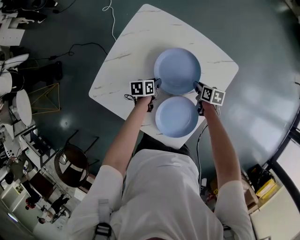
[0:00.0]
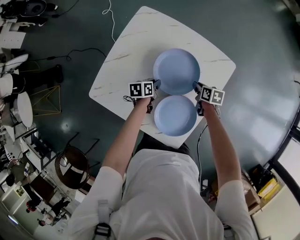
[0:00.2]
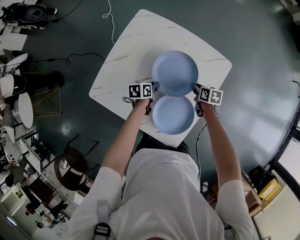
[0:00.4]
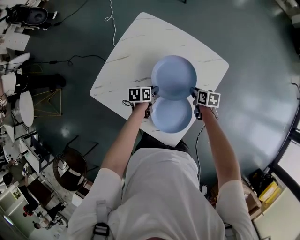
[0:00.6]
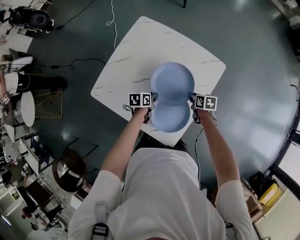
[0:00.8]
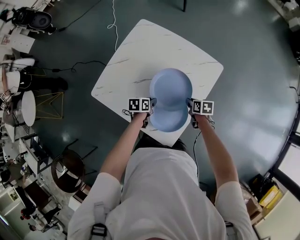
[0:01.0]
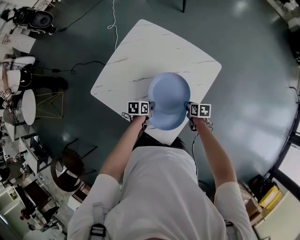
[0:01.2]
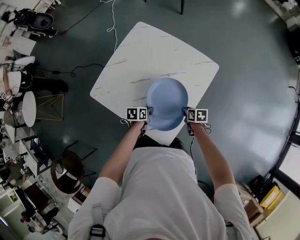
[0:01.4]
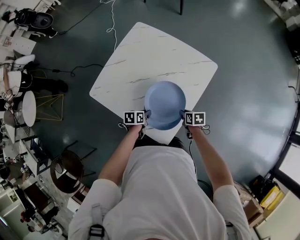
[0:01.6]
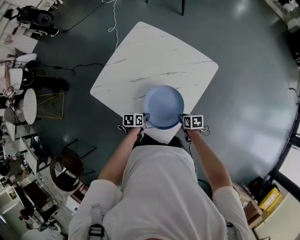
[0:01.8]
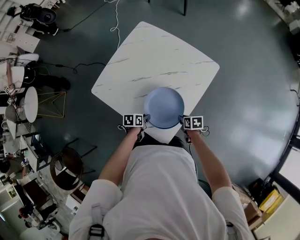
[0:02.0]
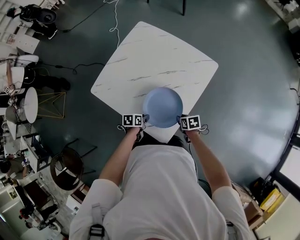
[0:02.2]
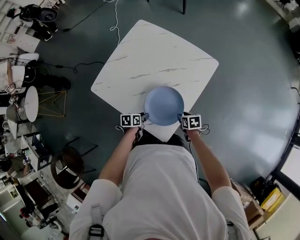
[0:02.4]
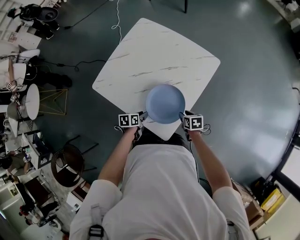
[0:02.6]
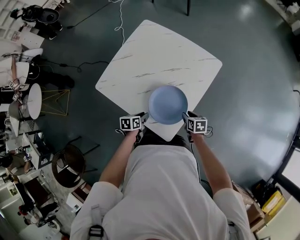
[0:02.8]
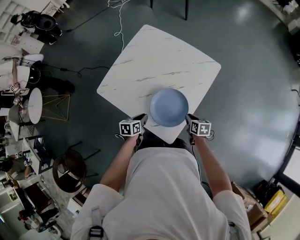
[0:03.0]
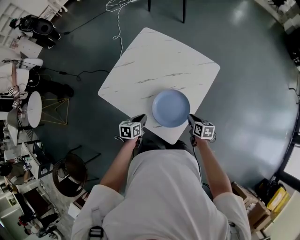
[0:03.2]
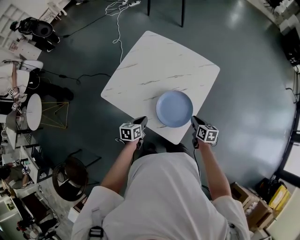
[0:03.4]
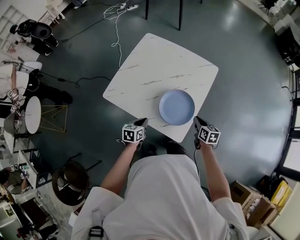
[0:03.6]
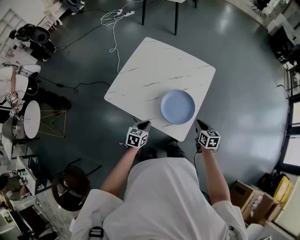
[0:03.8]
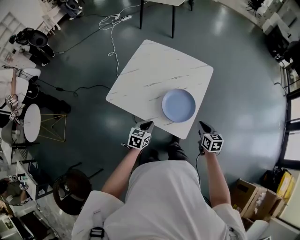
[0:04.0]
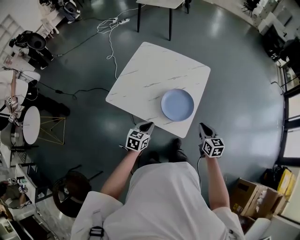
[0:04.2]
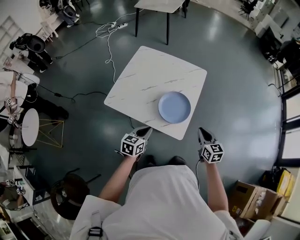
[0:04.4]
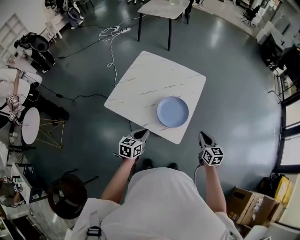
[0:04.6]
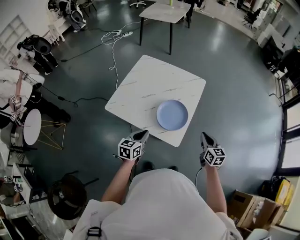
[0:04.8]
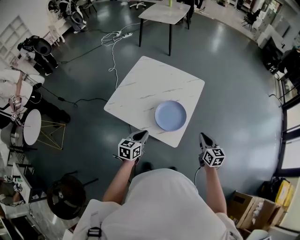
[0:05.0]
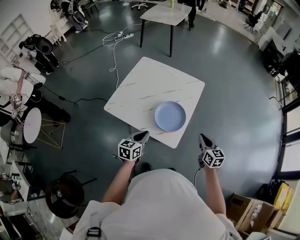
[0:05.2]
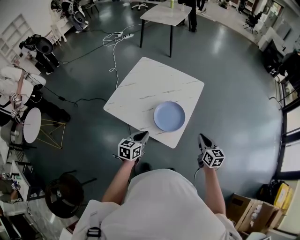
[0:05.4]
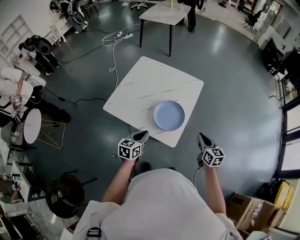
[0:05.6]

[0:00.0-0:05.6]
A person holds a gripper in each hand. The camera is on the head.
0:00.0 to 0:01.4: Both grippers travel together backward, roughly 20 cm.
0:01.4 to 0:02.8: Both grippers move backward, approximately 5 cm.
0:02.8 to 0:04.2: The two grippers go approximately 25 cm upward and backward. The left gripper rotates some 40 degrees, and closes up. The right gripper turns by some 30 degrees, and closes.
0:04.2 to 0:05.6: The left gripper goes roughly 5 cm upward; the right gripper goes approximately 5 cm to the right.

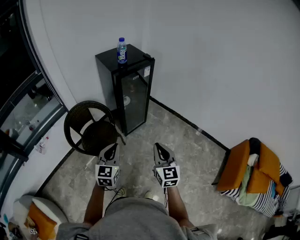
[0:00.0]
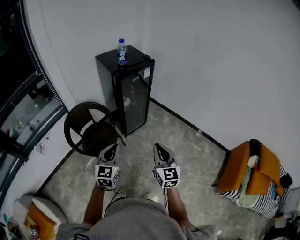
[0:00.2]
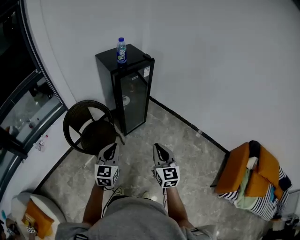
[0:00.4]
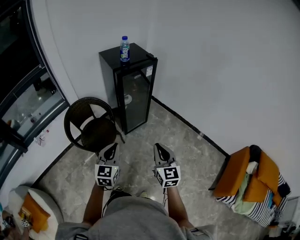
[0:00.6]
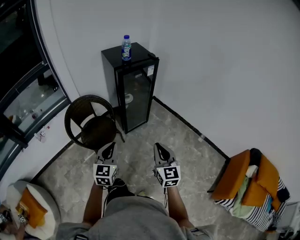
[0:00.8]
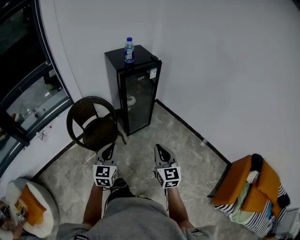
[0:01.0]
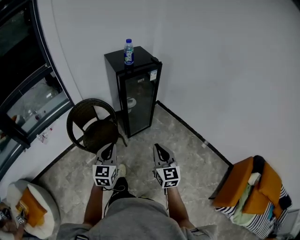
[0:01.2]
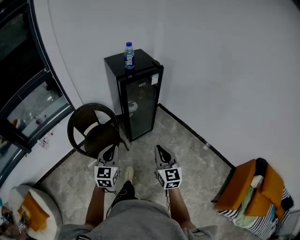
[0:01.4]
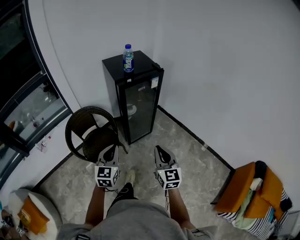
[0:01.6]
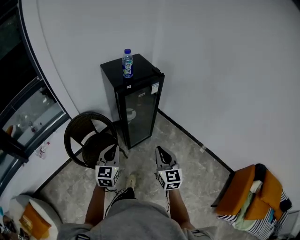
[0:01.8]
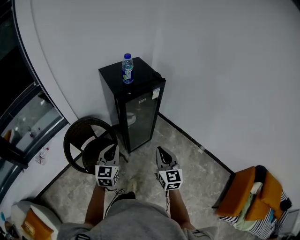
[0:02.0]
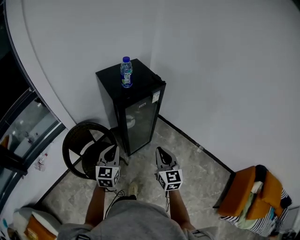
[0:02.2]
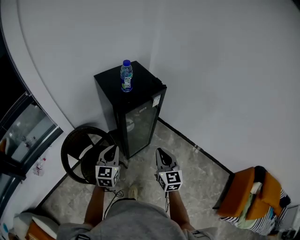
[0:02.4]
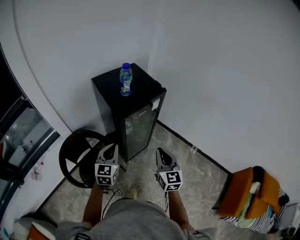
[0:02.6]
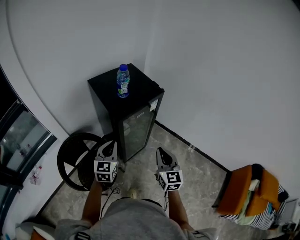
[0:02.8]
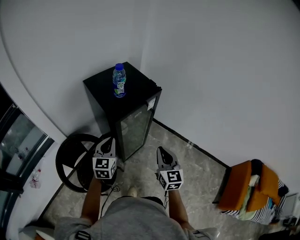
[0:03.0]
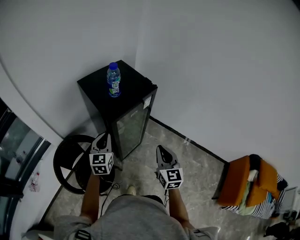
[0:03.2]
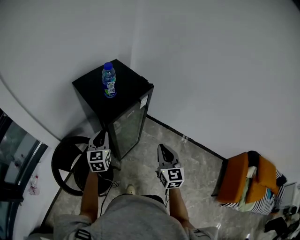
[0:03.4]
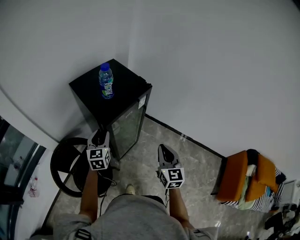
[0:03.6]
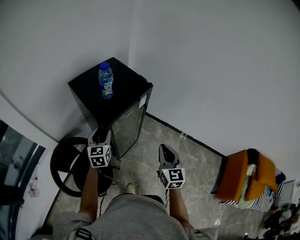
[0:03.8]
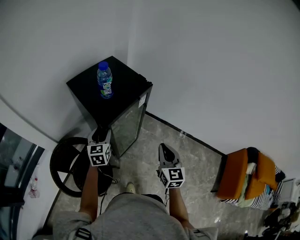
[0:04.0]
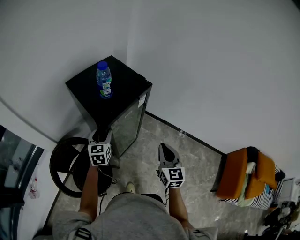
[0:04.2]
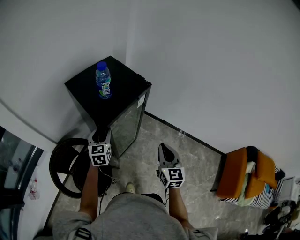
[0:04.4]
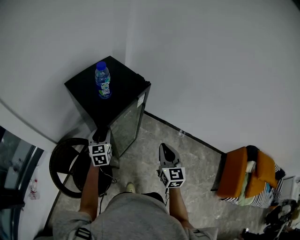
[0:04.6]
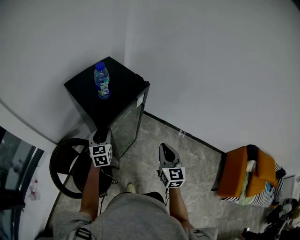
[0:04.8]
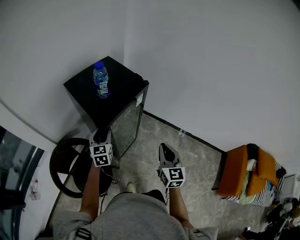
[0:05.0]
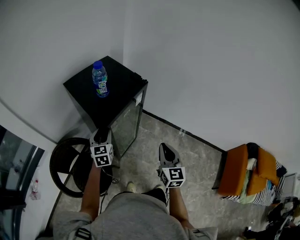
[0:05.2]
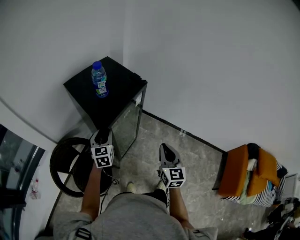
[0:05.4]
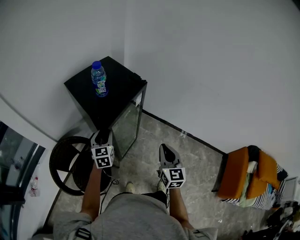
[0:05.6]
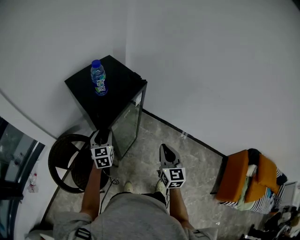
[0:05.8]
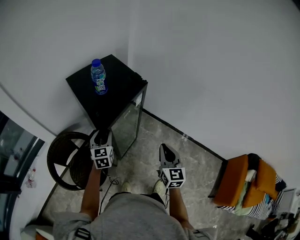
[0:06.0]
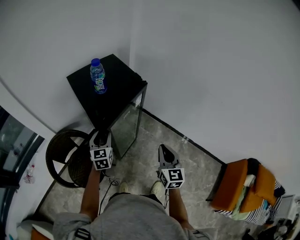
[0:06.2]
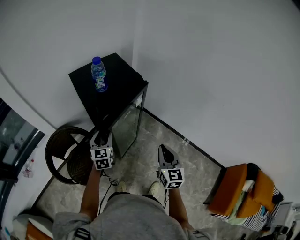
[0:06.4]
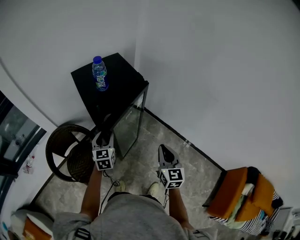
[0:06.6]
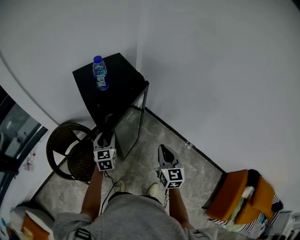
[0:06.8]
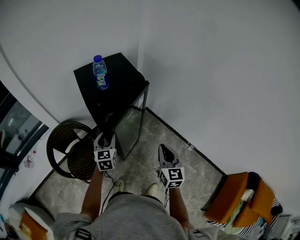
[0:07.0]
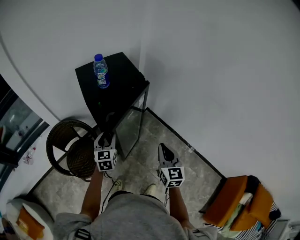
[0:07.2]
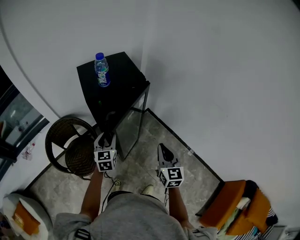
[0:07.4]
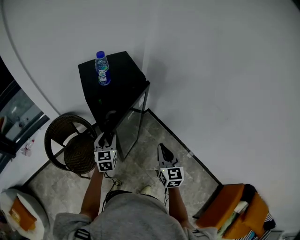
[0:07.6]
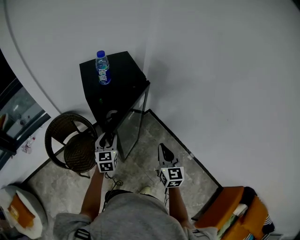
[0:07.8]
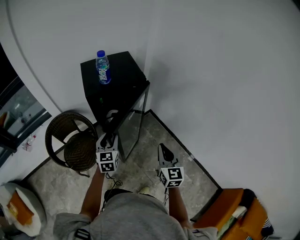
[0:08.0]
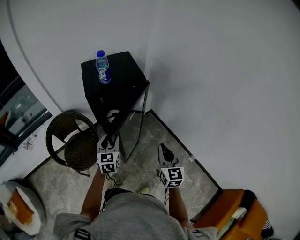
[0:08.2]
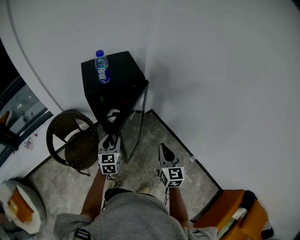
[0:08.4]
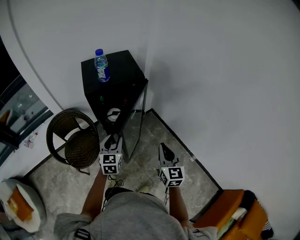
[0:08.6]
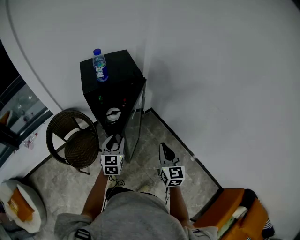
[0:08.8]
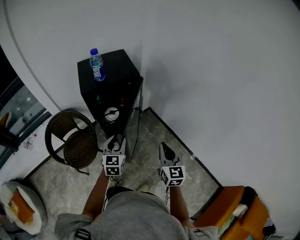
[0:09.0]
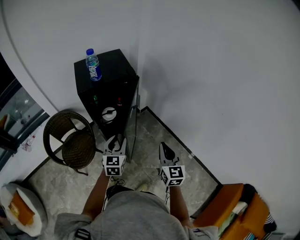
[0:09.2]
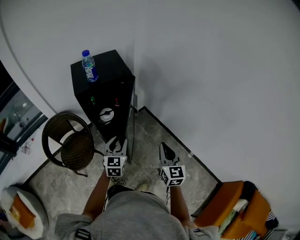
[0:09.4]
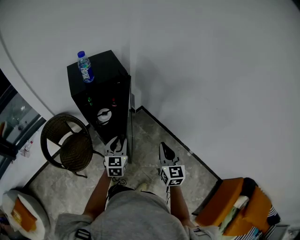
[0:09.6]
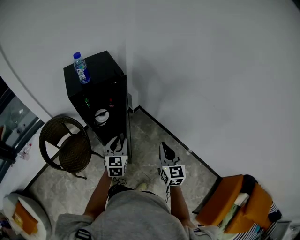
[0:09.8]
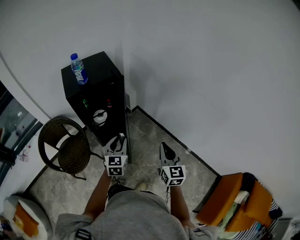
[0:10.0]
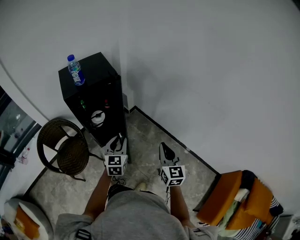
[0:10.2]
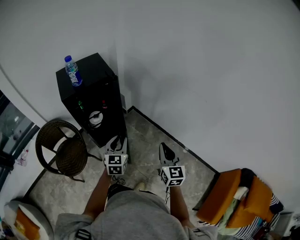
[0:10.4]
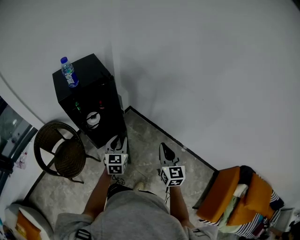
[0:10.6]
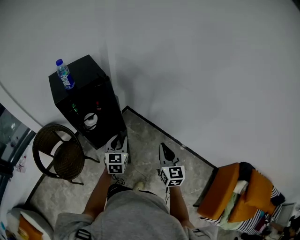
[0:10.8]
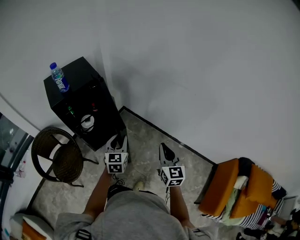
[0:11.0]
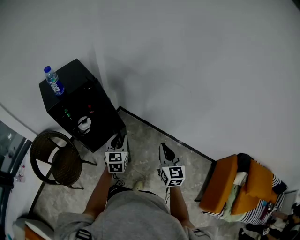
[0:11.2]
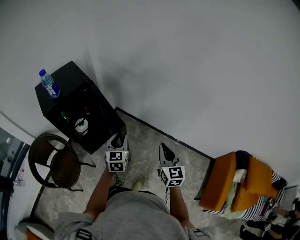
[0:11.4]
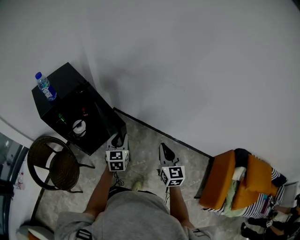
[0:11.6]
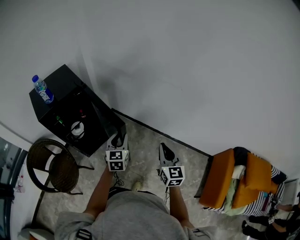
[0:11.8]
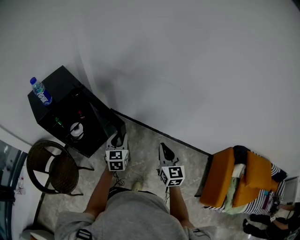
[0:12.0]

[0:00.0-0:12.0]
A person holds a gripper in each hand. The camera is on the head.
0:00.0 to 0:01.6: Both grippers travel together forward, approximately 10 cm.
0:01.6 to 0:03.0: The grippers both shift forward by roughly 25 cm.
0:03.0 to 0:04.4: The left gripper is displaced forward and downward by about 10 cm, and opens its fingers; the right gripper ends up some 5 cm from where it was.
0:04.4 to 0:06.0: The right gripper heads to the right, covering about 5 cm, while the left gripper changes place by about 5 cm.
0:06.0 to 0:07.6: The left gripper travels to the right and backward by roughly 10 cm. Meanwhile the right gripper is displaced to the right by roughly 10 cm.
0:07.6 to 0:09.0: The right gripper shifts some 5 cm to the right. The left gripper is displaced to the right and backward by about 10 cm.
0:09.0 to 0:10.4: The right gripper shifts roughly 10 cm to the right and backward; the left gripper travels to the right by approximately 10 cm.
0:10.4 to 0:12.0: Both grippers move to the right, some 10 cm.

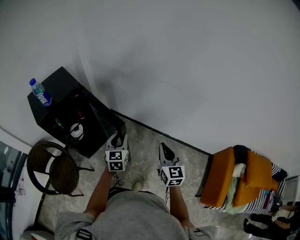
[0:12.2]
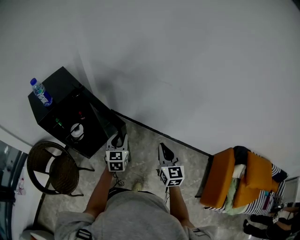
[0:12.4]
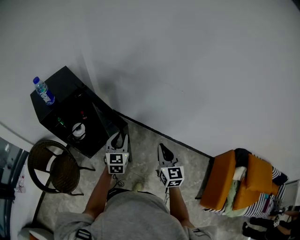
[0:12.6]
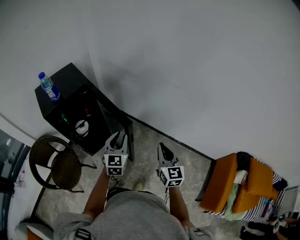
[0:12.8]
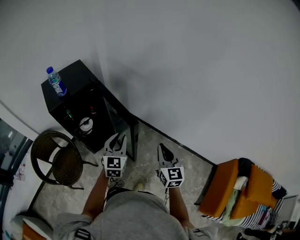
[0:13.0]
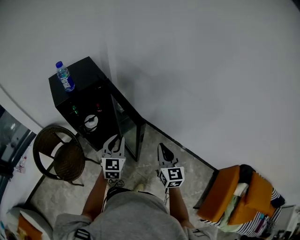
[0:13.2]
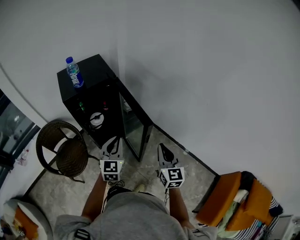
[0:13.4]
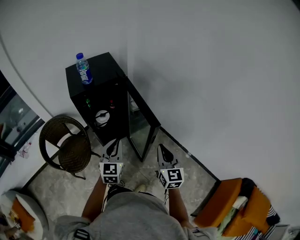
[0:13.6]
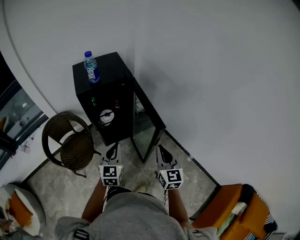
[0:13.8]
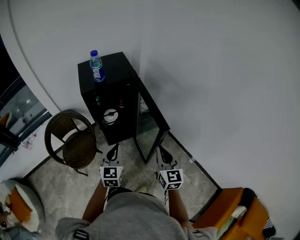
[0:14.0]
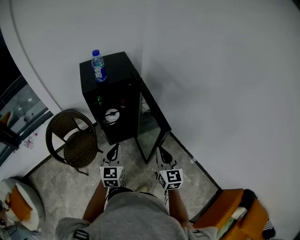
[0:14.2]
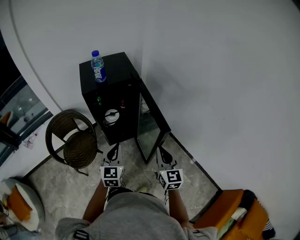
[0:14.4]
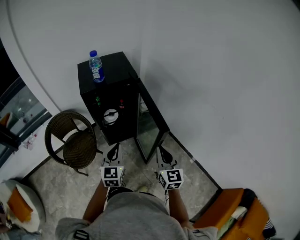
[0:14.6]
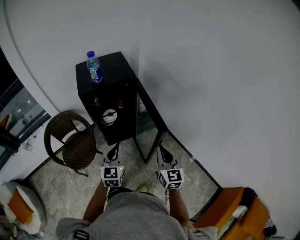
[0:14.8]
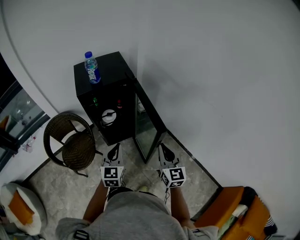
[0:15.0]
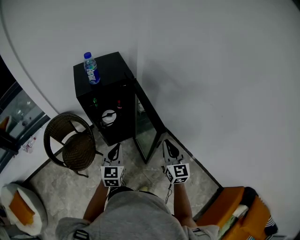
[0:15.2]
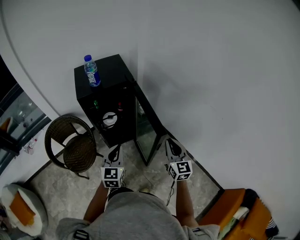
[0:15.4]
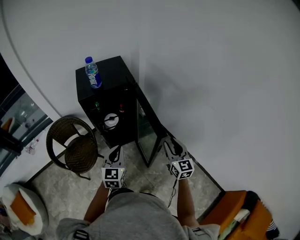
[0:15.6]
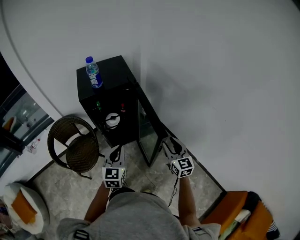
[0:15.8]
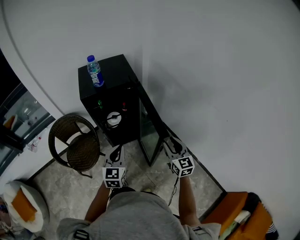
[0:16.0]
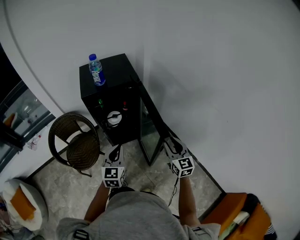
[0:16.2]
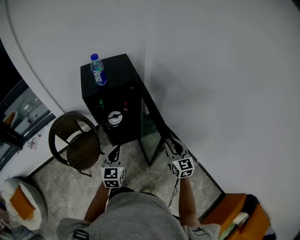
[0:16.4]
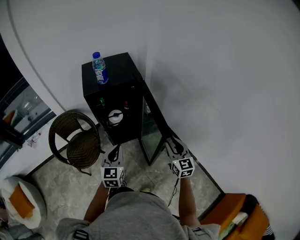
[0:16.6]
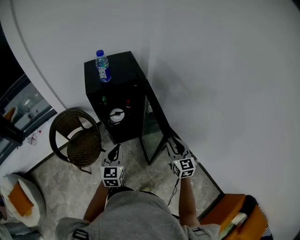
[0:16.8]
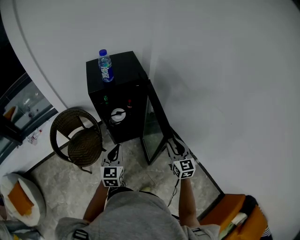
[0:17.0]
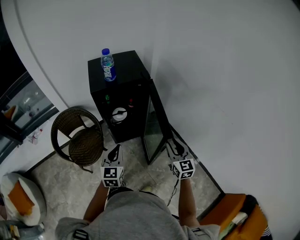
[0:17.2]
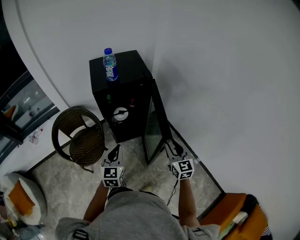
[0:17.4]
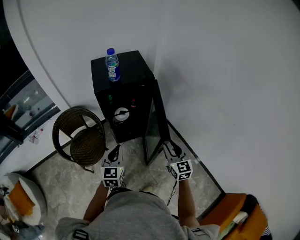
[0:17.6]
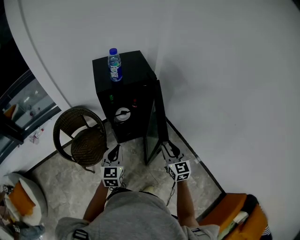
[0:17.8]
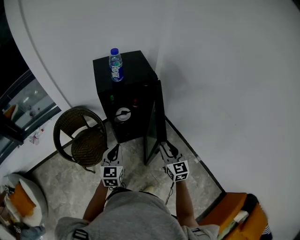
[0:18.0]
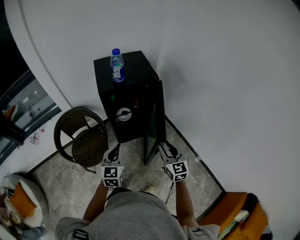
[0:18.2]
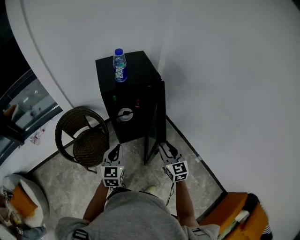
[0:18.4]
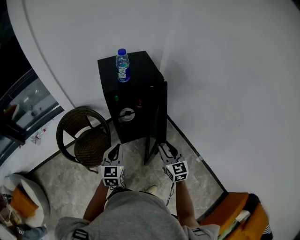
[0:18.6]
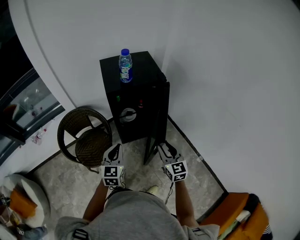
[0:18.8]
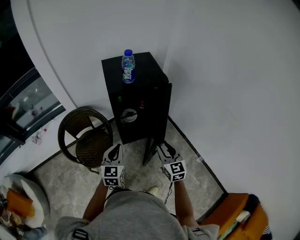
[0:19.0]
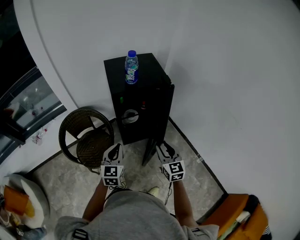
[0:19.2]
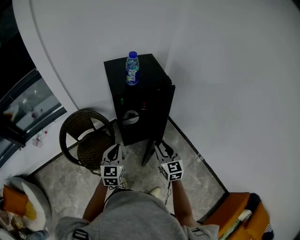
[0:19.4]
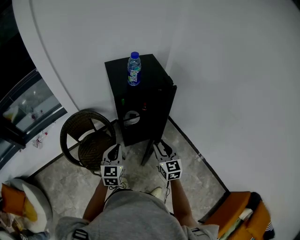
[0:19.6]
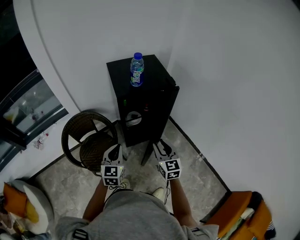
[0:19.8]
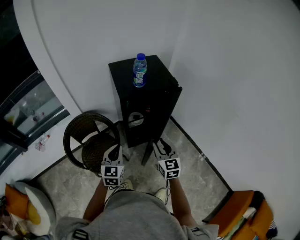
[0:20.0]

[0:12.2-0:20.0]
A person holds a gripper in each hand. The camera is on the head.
0:12.2 to 0:13.8: The left gripper moves to the left and backward, roughly 20 cm, changes its angle by approximately 20 degrees, and closes its fingers. The right gripper travels to the left by roughly 15 cm, and turns by about 20 degrees.
0:13.8 to 0:15.4: The right gripper moves forward and to the right, some 10 cm.
0:15.4 to 0:16.8: The right gripper opens up.
0:16.8 to 0:18.4: The grippers both shift to the left by some 10 cm.
0:18.4 to 0:20.0: The left gripper travels to the left by roughly 10 cm. The right gripper goes some 15 cm to the left and forward.
